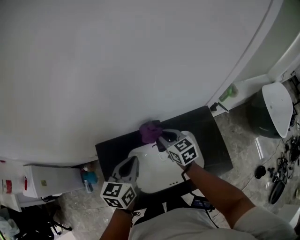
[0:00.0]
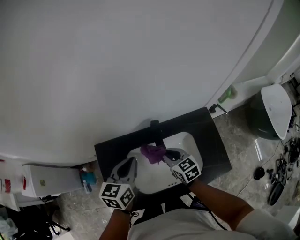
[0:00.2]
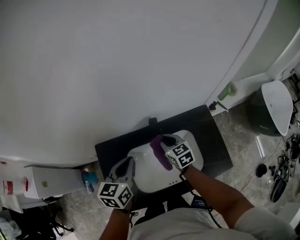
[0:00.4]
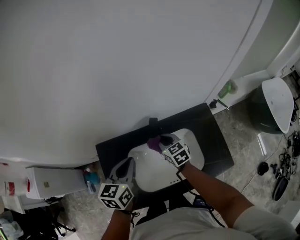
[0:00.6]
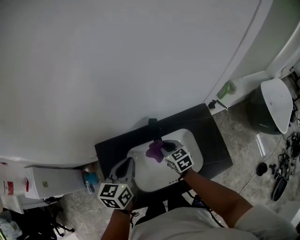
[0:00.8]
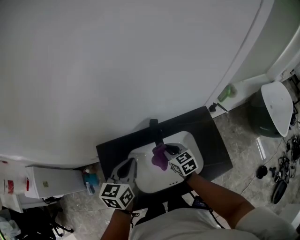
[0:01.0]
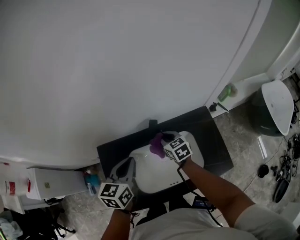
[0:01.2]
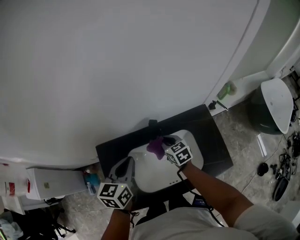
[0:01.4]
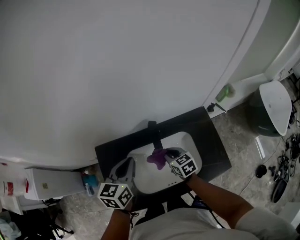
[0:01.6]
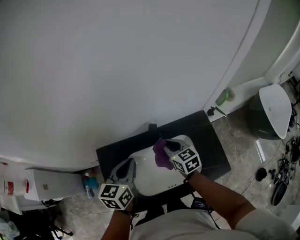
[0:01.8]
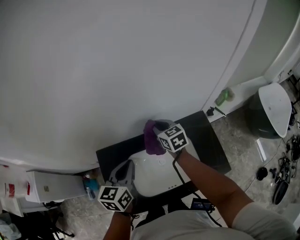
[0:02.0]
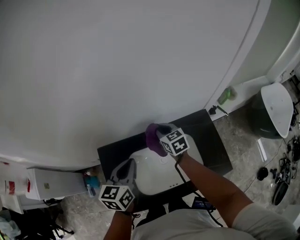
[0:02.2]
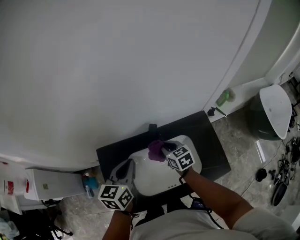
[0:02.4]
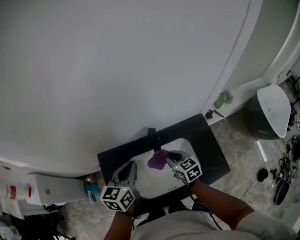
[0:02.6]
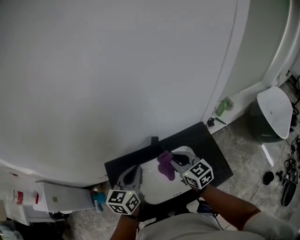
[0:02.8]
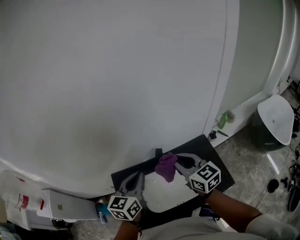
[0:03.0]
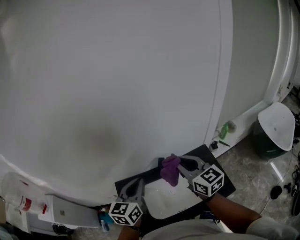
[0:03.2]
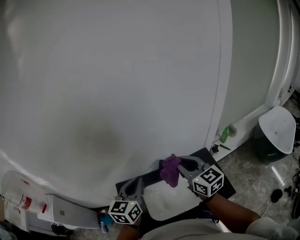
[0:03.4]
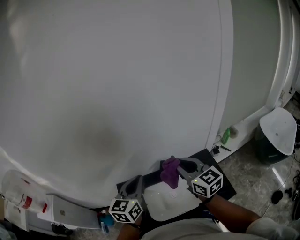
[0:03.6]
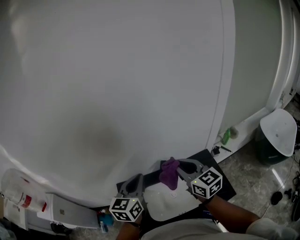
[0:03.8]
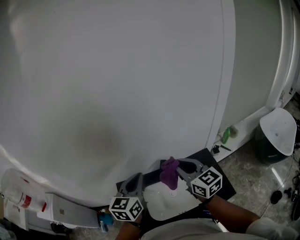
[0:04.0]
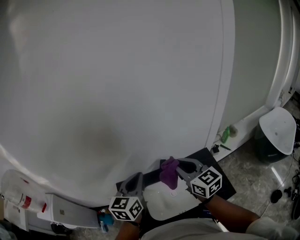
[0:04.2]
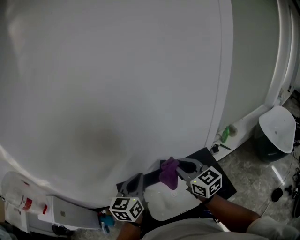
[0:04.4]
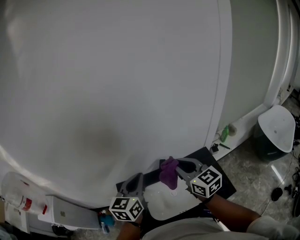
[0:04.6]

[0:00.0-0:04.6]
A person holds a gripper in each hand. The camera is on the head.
0:00.0 to 0:01.6: The right gripper moves forward and backward over roughly 10 cm, changing direction 4 times.
0:01.6 to 0:03.0: The right gripper swings up and down, approximately 30 cm each way, with 2 reversals, and swivels approximately 30 degrees; the left gripper travels upward by some 15 cm.
0:03.0 to 0:04.6: The grippers both shift upward by approximately 5 cm.

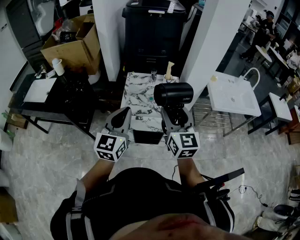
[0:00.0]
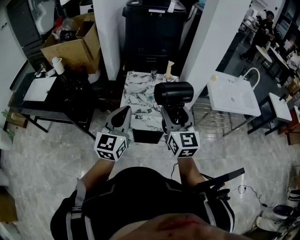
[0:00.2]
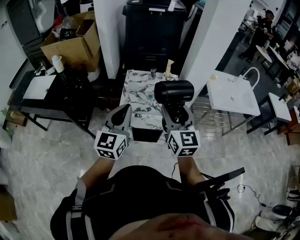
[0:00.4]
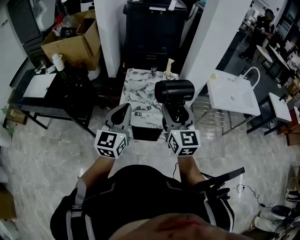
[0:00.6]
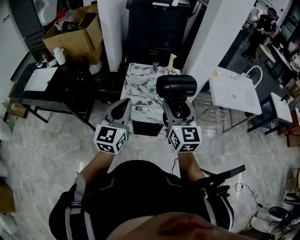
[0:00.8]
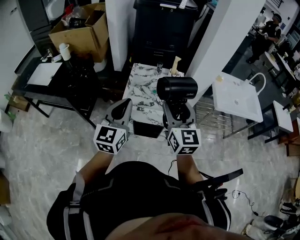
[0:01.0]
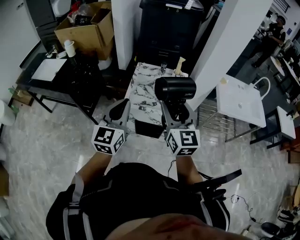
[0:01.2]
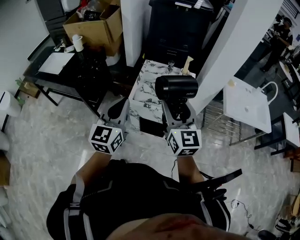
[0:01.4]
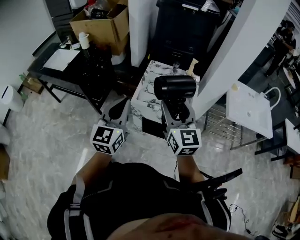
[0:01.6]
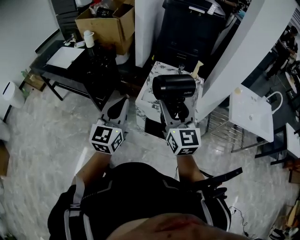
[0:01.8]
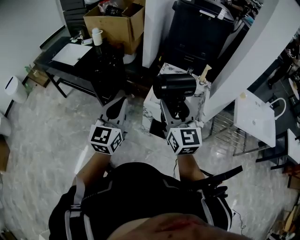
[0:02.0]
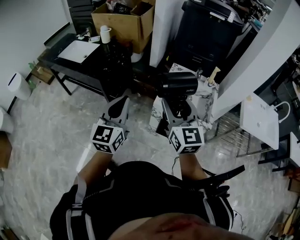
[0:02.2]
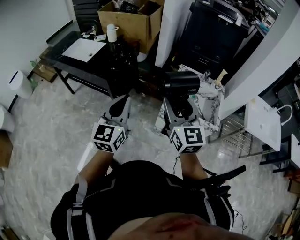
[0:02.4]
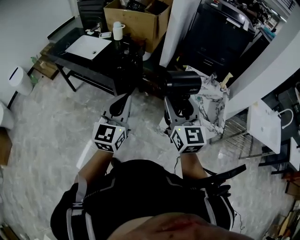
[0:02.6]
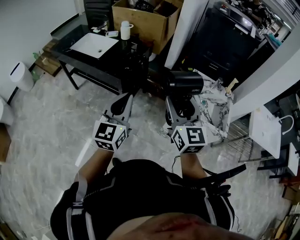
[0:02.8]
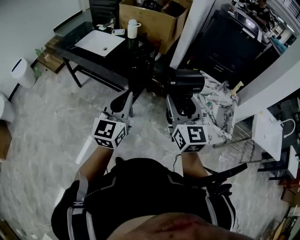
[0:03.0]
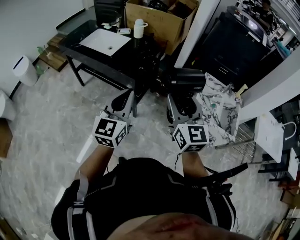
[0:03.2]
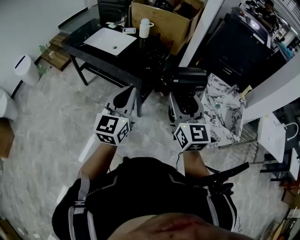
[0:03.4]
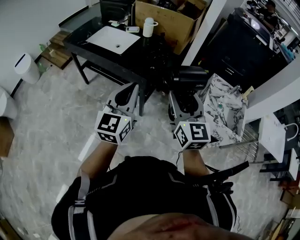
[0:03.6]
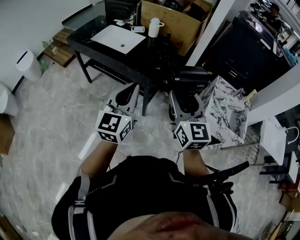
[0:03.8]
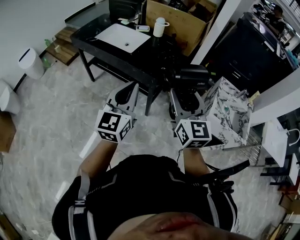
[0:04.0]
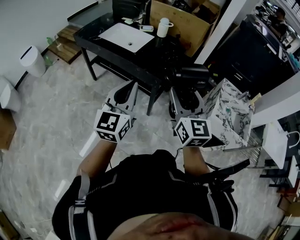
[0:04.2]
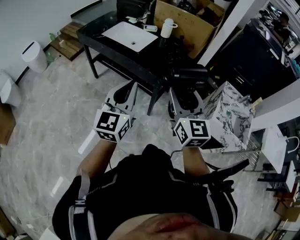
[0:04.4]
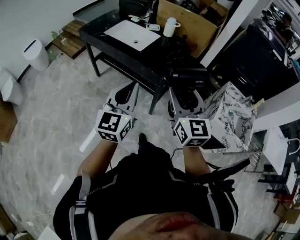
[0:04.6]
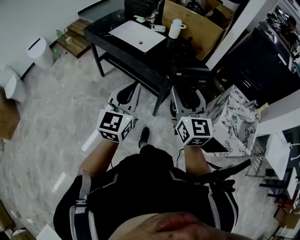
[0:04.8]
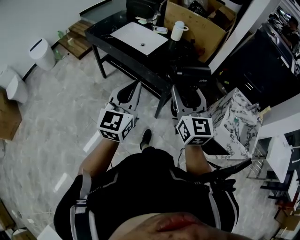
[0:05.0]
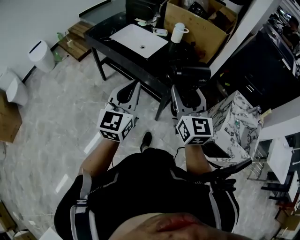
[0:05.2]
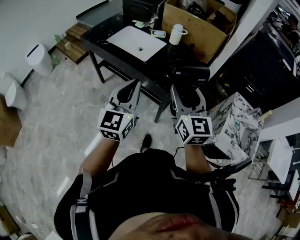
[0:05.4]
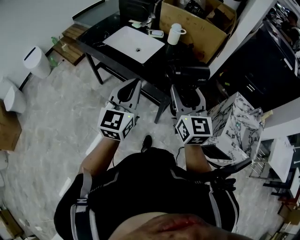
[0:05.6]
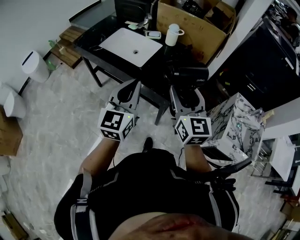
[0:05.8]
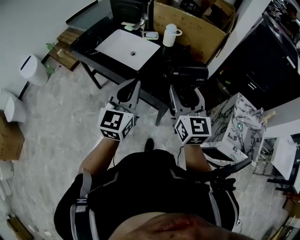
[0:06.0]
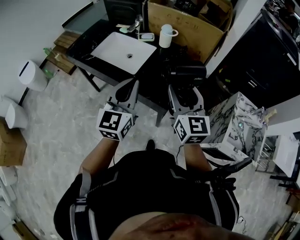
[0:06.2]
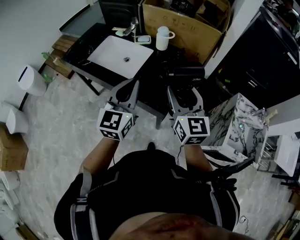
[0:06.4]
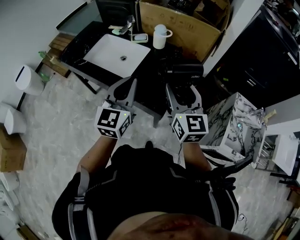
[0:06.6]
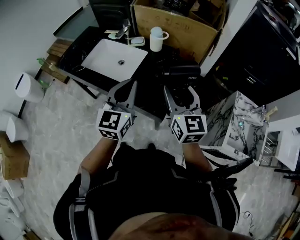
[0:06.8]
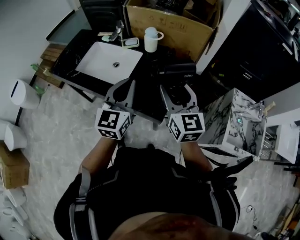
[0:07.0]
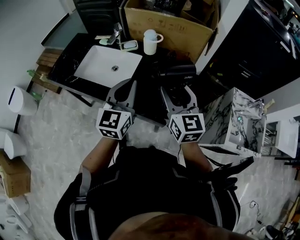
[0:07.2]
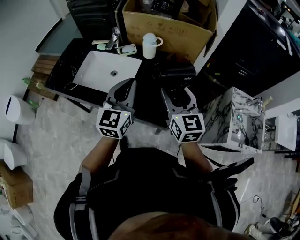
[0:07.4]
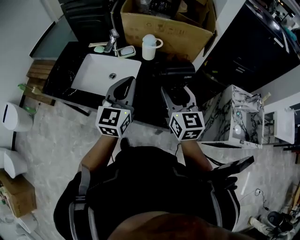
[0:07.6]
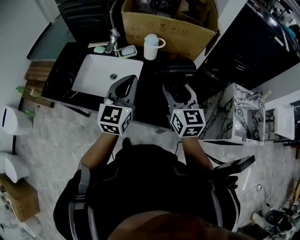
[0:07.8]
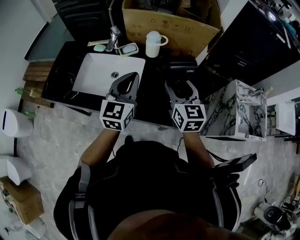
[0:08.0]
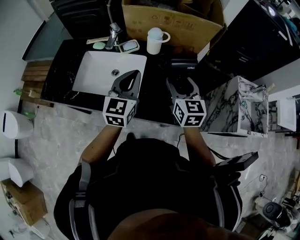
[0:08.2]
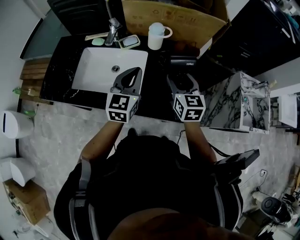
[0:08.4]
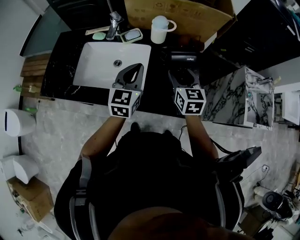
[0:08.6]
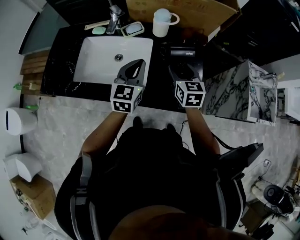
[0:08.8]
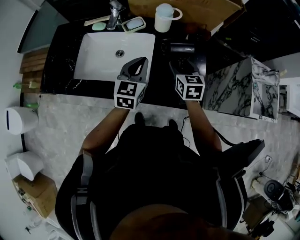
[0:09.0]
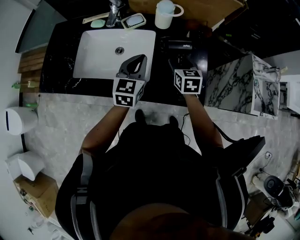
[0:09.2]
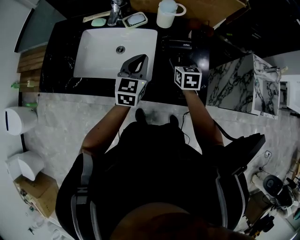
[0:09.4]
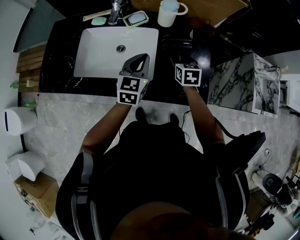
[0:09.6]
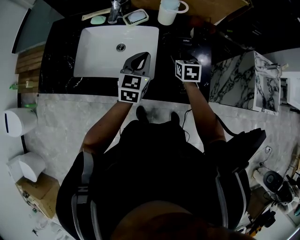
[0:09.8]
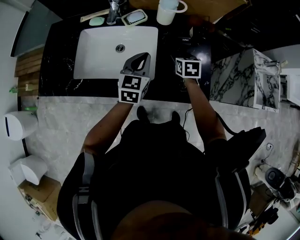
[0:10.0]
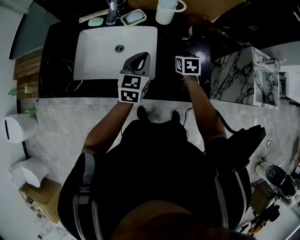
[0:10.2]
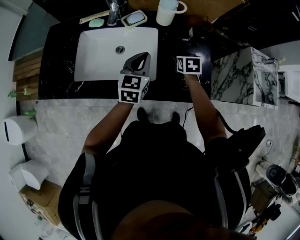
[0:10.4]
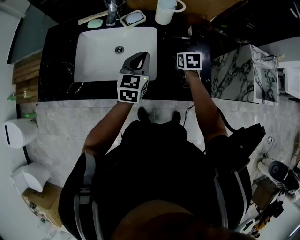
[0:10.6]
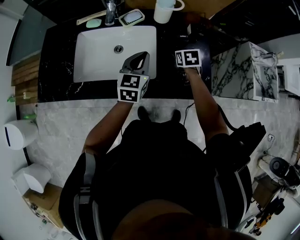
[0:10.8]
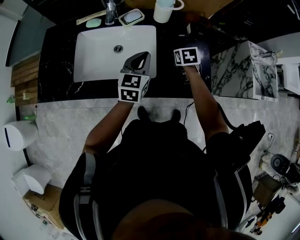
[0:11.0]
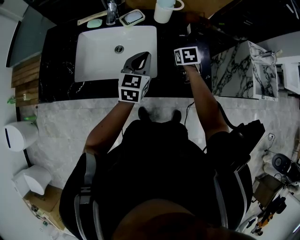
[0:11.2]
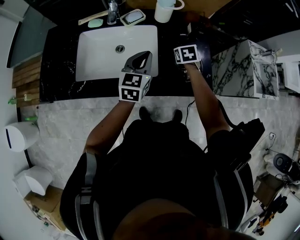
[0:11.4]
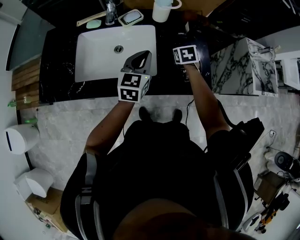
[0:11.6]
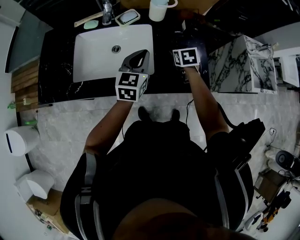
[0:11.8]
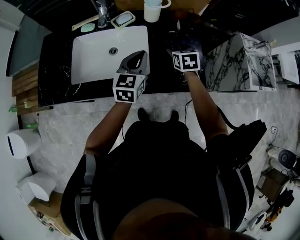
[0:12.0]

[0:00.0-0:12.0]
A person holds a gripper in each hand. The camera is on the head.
0:00.0 to 0:01.6: The grippers make only small movements.
0:01.6 to 0:03.0: The two grippers go some 35 cm to the left.
0:03.0 to 0:04.4: The grippers both shift to the left by some 20 cm.
0:04.4 to 0:06.0: The two grippers go about 20 cm forward.
0:06.0 to 0:07.6: Both grippers move forward, some 20 cm.
0:07.6 to 0:09.0: The right gripper is displaced downward and forward by about 20 cm, and changes its angle by roughly 30 degrees. Meanwhile the left gripper goes about 20 cm downward, forward and to the left.
0:09.0 to 0:10.4: The right gripper shifts about 10 cm downward, and rotates roughly 20 degrees.
0:10.4 to 0:12.0: The right gripper heads upward, covering approximately 5 cm.

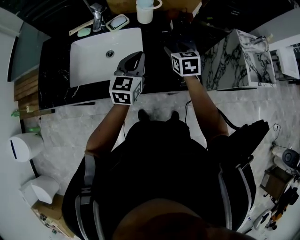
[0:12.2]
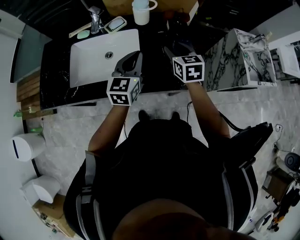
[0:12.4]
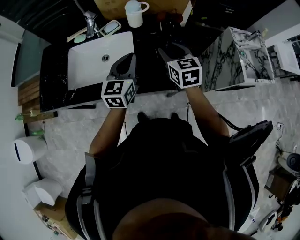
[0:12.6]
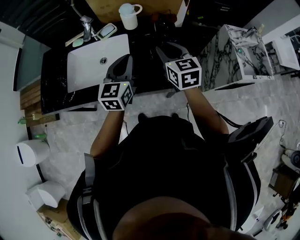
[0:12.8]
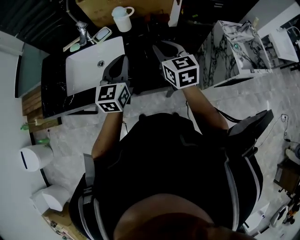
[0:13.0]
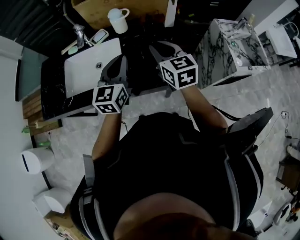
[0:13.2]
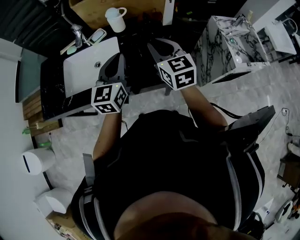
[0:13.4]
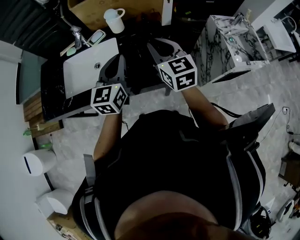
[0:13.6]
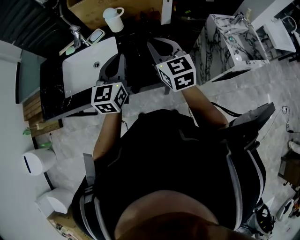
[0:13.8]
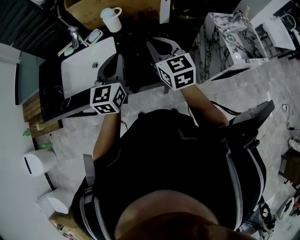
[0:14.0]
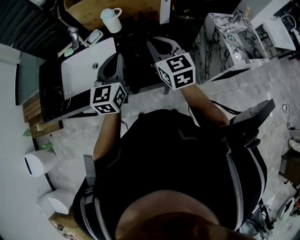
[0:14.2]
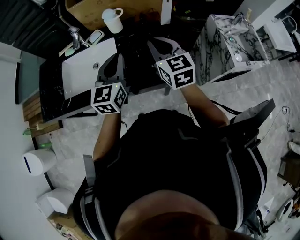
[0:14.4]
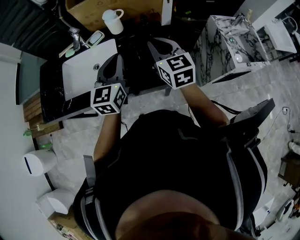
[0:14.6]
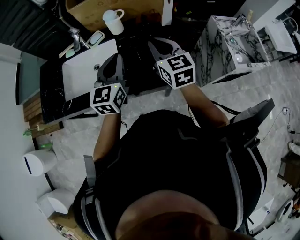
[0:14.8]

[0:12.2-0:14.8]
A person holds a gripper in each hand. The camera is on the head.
0:12.2 to 0:13.4: The left gripper shifts approximately 15 cm upward, to the right and backward, while the right gripper moves upward and backward, approximately 20 cm, changes its angle by approximately 20 degrees, and closes up.
0:13.4 to 0:14.8: The grippers make only small movements.

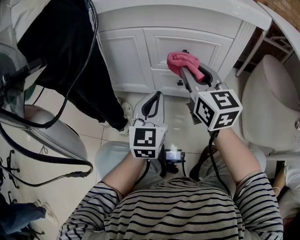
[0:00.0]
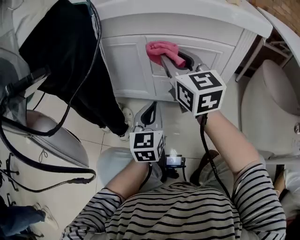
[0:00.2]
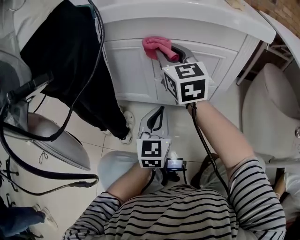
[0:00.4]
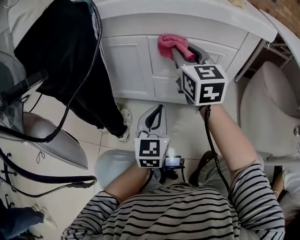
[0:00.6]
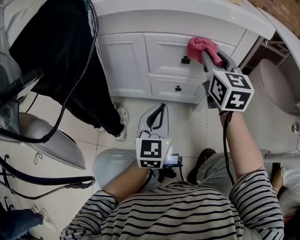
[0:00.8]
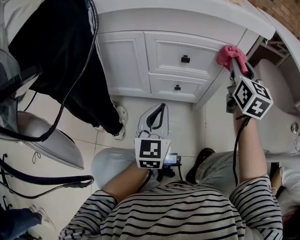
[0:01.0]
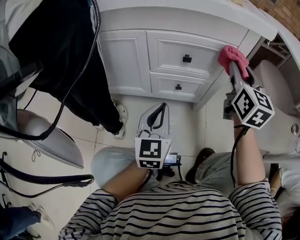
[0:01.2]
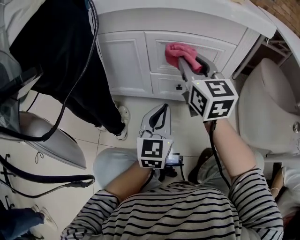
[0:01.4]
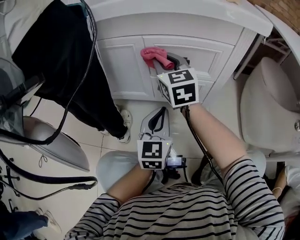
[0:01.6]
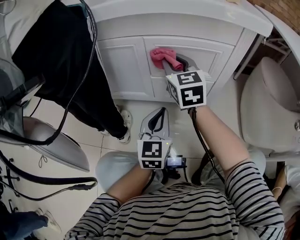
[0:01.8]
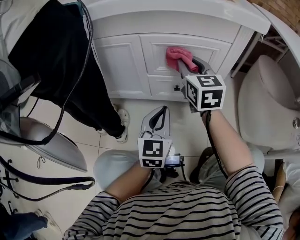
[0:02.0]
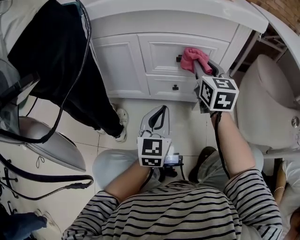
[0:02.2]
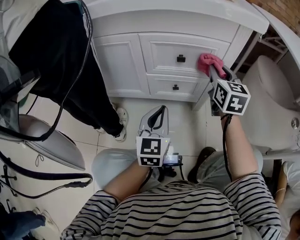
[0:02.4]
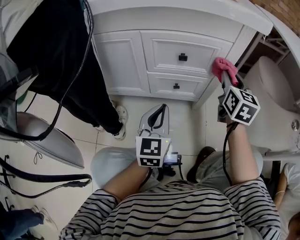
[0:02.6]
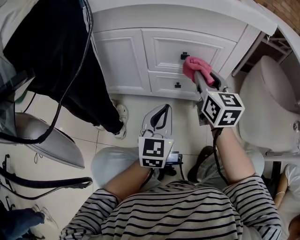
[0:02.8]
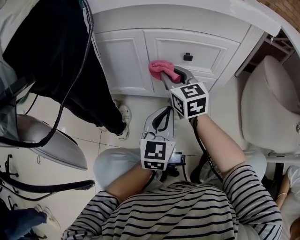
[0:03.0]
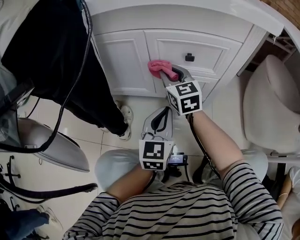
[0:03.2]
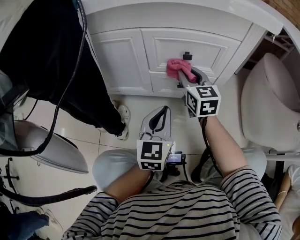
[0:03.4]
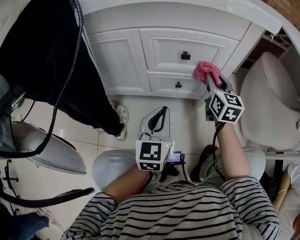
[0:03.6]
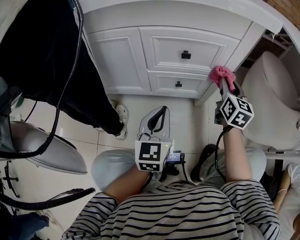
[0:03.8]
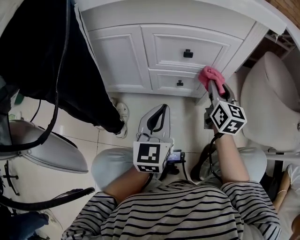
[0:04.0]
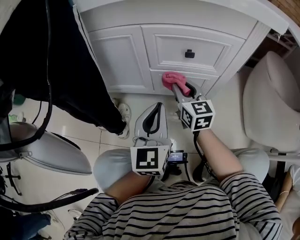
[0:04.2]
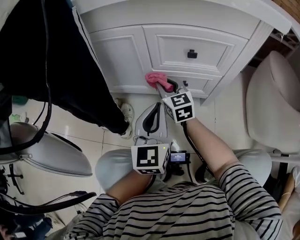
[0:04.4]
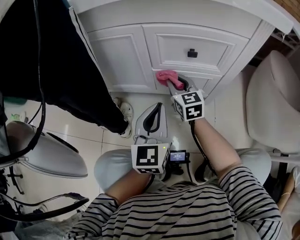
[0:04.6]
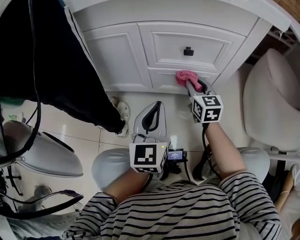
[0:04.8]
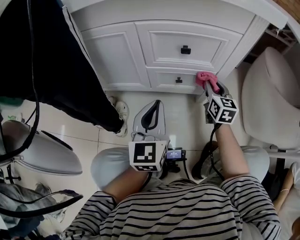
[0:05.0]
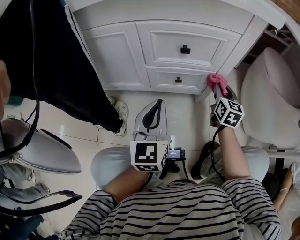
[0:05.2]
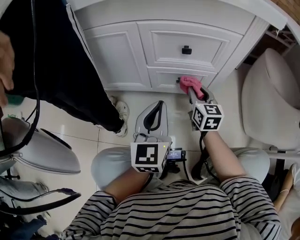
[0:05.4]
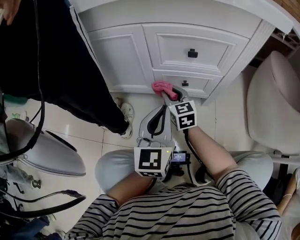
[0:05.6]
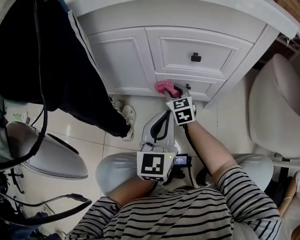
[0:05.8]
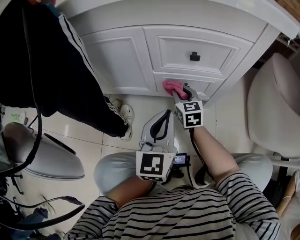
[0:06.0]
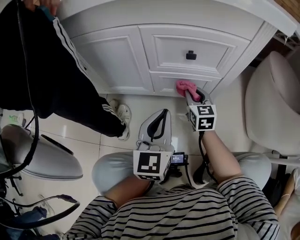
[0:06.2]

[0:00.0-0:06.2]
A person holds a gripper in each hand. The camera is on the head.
0:00.0 to 0:01.6: The right gripper swings left and right, approximately 25 cm each way, with 2 reversals.
0:01.6 to 0:03.2: The right gripper shifts roughly 10 cm downward, and reaches roughly 25 cm to the right, then returns.
0:03.2 to 0:04.6: The right gripper goes left and right, approximately 30 cm each way, reversing 2 times.
0:04.6 to 0:06.2: The right gripper swings left and right, roughly 25 cm each way, with 2 reversals.
